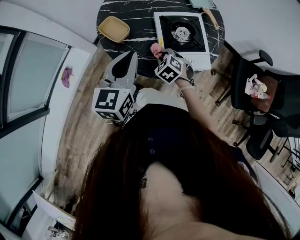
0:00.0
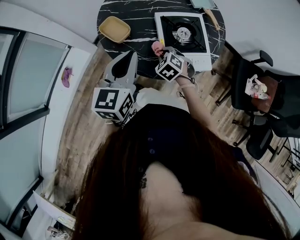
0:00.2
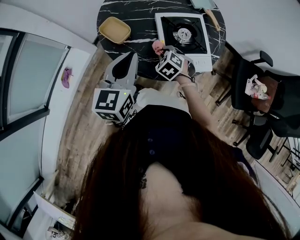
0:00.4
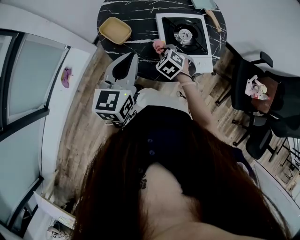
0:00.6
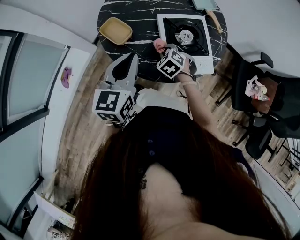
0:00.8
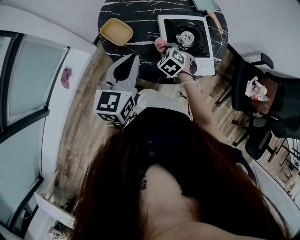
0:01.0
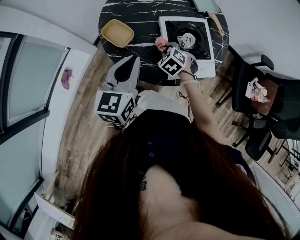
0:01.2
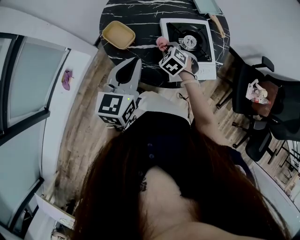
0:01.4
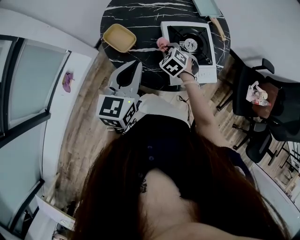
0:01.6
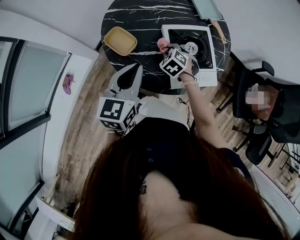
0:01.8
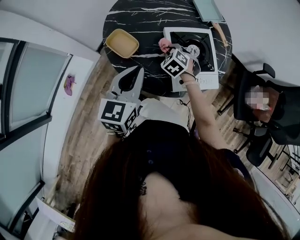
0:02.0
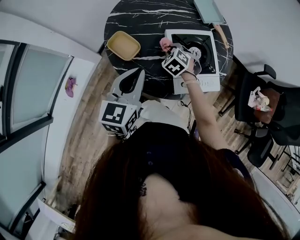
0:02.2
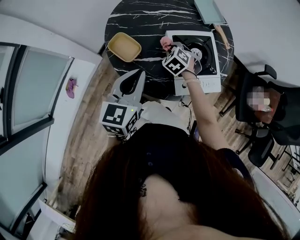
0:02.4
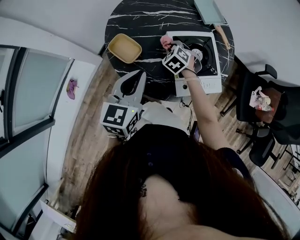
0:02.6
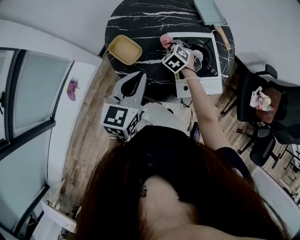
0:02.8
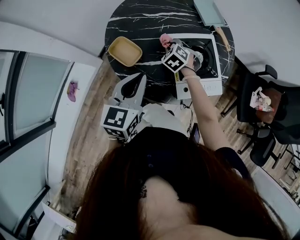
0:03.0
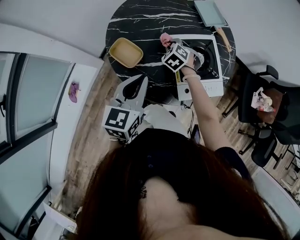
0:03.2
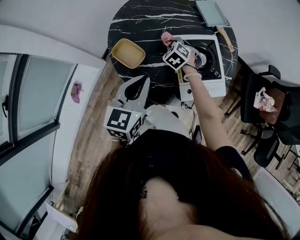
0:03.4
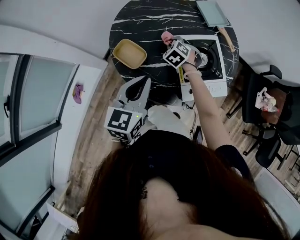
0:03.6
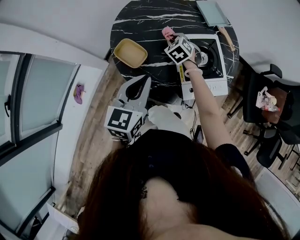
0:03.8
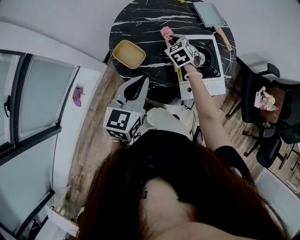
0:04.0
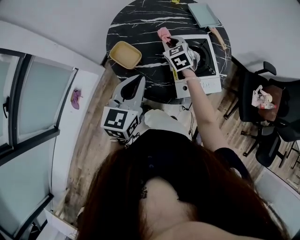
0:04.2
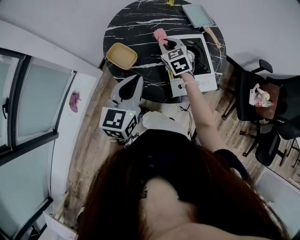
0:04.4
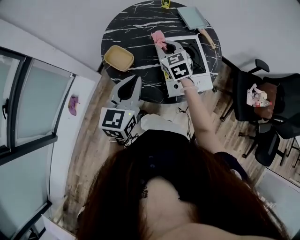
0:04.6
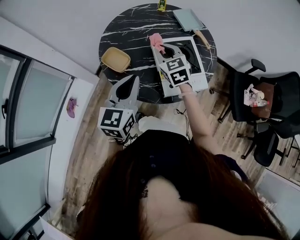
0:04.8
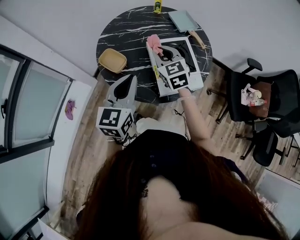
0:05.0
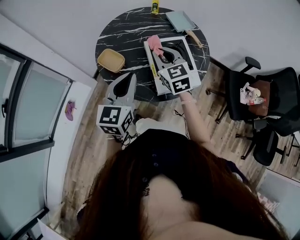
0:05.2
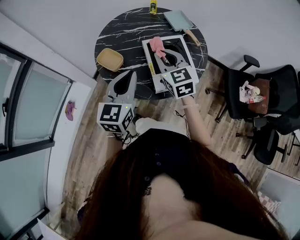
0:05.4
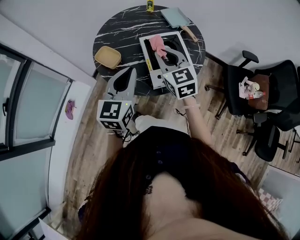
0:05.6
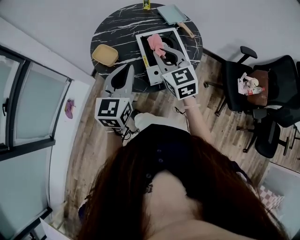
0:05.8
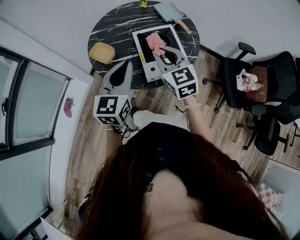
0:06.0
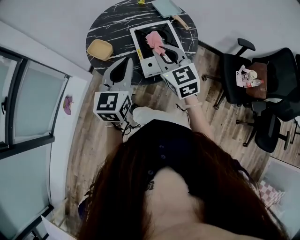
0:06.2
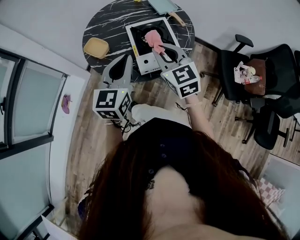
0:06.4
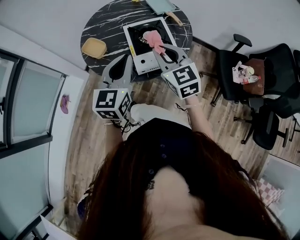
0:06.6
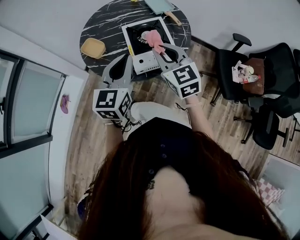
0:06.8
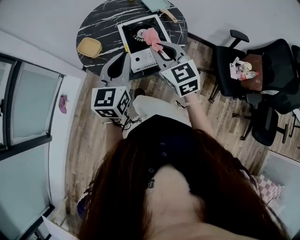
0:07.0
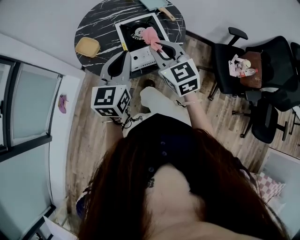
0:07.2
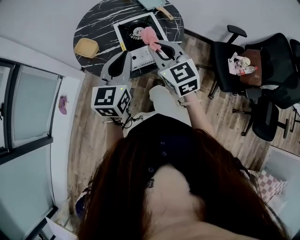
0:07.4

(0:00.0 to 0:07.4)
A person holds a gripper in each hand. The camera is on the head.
0:00.0 - 0:01.4: The right gripper travels forward by some 10 cm.
0:01.4 - 0:03.0: The right gripper shifts approximately 10 cm forward.
0:03.0 - 0:04.4: The right gripper shifts some 10 cm upward, and rotates roughly 30 degrees.
0:04.4 - 0:06.0: The left gripper shifts some 15 cm to the right, backward and upward. The right gripper goes about 30 cm backward, upward and to the right.
0:06.0 - 0:07.4: The right gripper goes approximately 10 cm to the right and backward. Meanwhile the left gripper goes approximately 10 cm to the right.

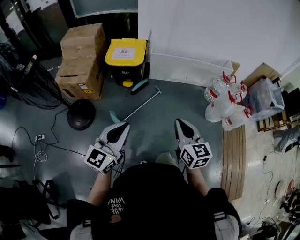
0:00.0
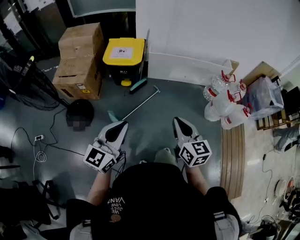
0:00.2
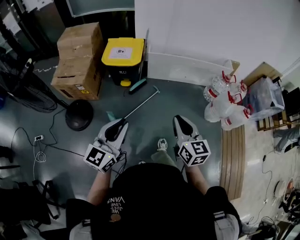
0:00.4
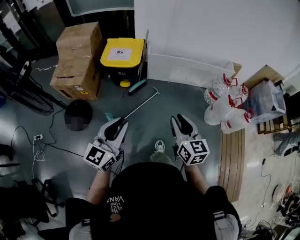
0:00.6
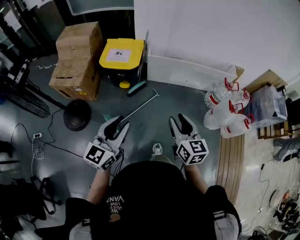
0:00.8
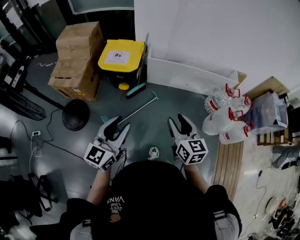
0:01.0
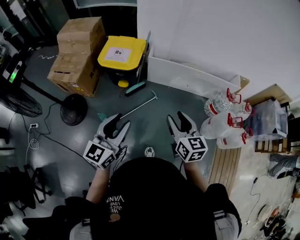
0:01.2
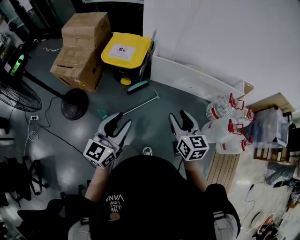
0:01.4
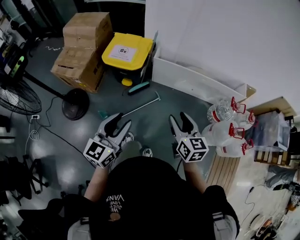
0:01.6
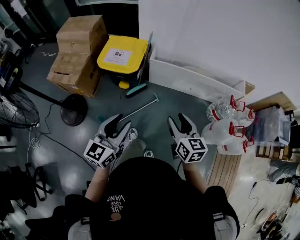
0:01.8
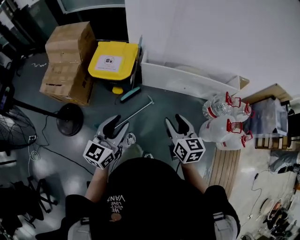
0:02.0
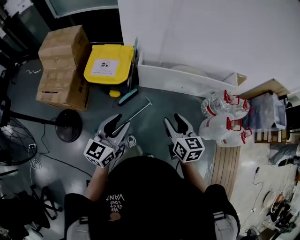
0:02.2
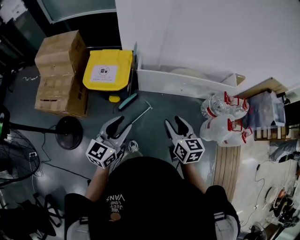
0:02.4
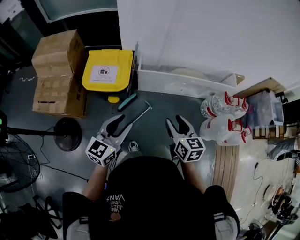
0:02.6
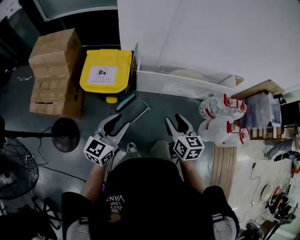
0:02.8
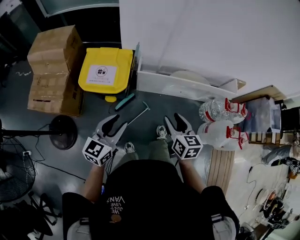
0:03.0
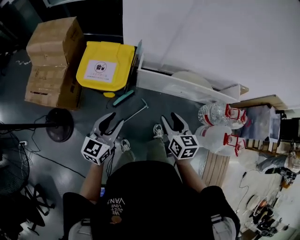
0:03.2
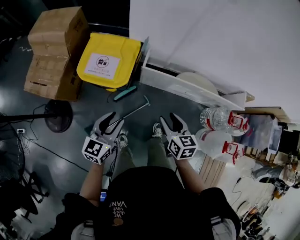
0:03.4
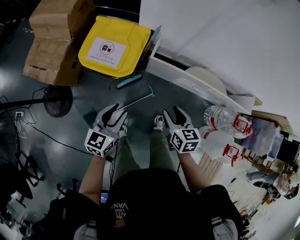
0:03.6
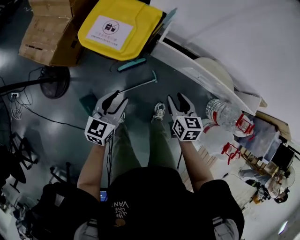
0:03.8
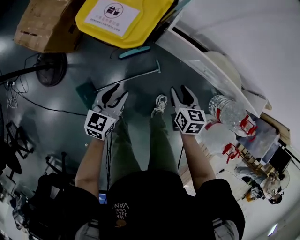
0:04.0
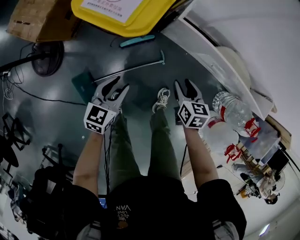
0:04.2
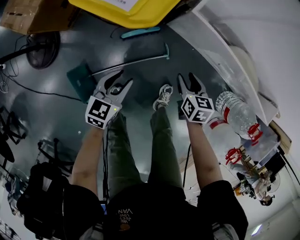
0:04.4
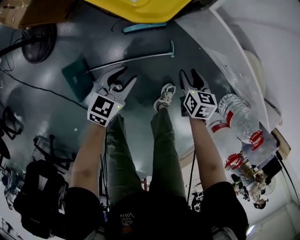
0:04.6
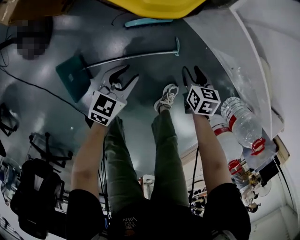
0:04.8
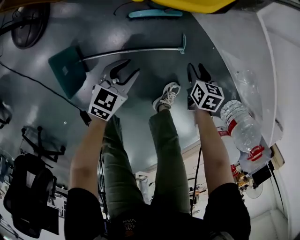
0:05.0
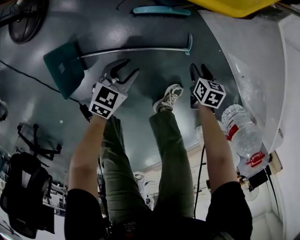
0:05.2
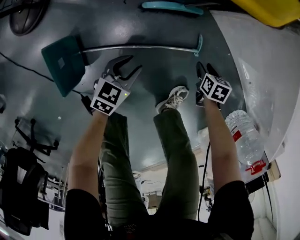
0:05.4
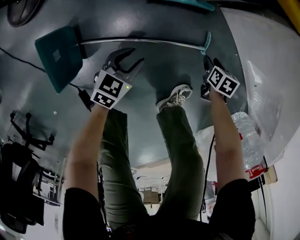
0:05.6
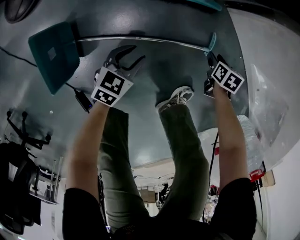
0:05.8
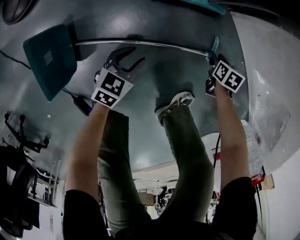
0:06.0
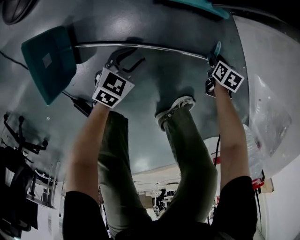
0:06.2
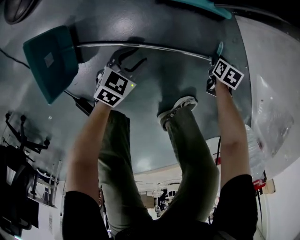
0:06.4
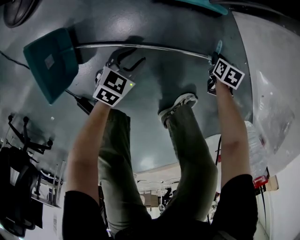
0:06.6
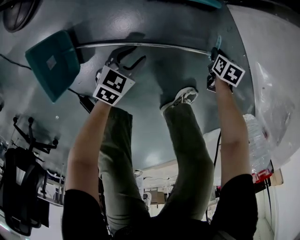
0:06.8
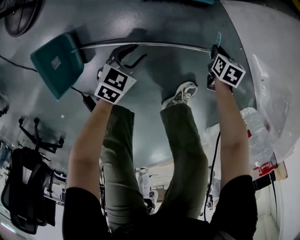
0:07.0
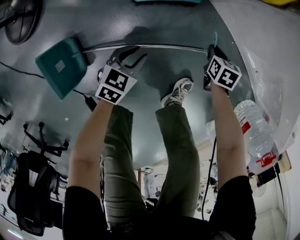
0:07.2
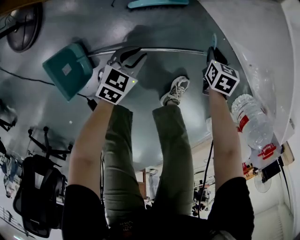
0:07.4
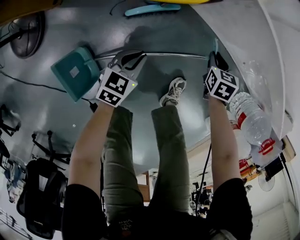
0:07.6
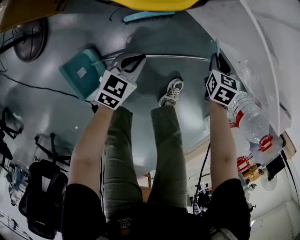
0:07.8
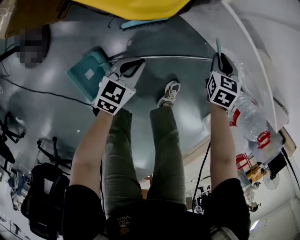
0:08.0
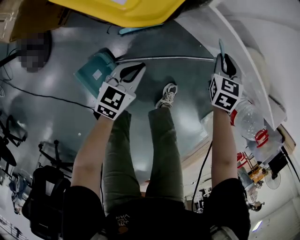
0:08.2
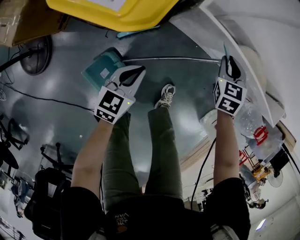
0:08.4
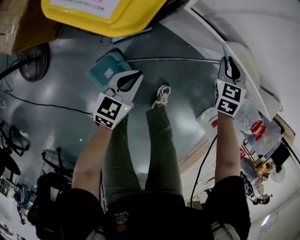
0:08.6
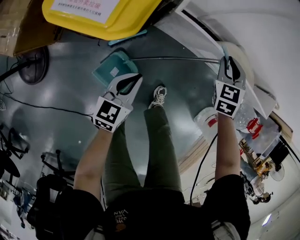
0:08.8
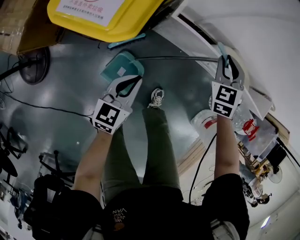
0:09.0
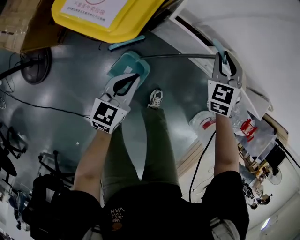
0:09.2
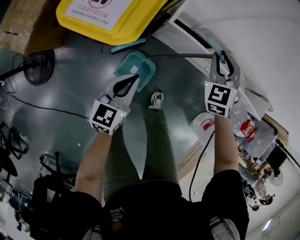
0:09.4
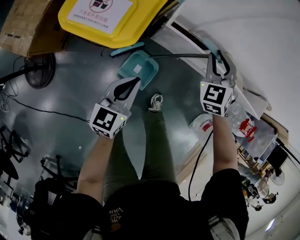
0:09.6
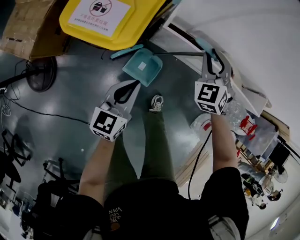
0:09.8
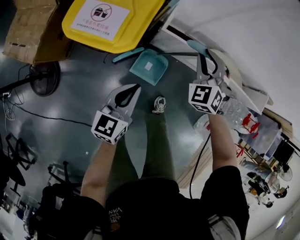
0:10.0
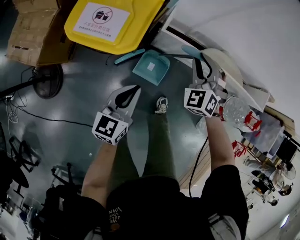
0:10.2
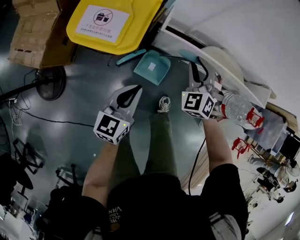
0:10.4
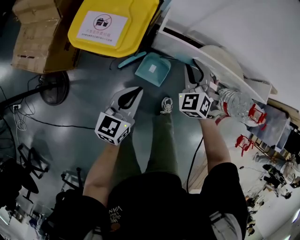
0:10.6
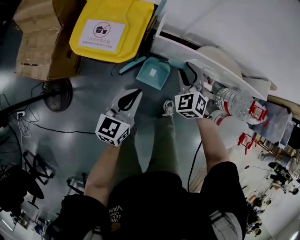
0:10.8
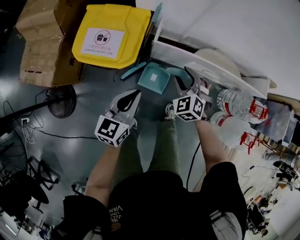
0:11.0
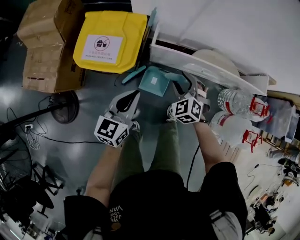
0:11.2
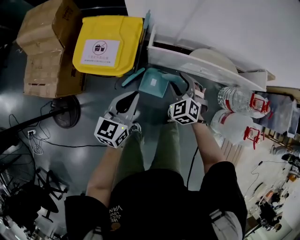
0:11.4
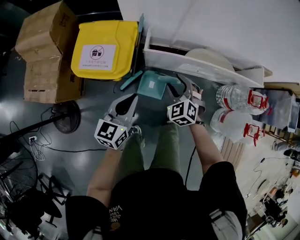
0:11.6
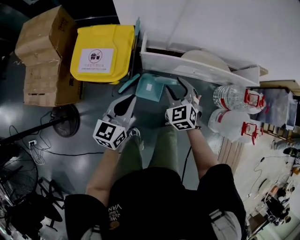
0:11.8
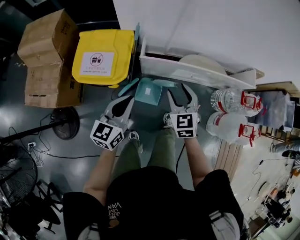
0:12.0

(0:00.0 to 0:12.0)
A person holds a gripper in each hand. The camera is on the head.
0:00.0 - 0:01.6: The right gripper moves forward, about 30 cm, and opens, while the left gripper heads forward and to the right, covering roughly 25 cm, and opens its fingers.
0:01.6 - 0:03.0: The two grippers go about 20 cm forward.
0:03.0 - 0:04.4: The grippers both shift downward by roughly 40 cm. The right gripper rotates some 30 degrees; the left gripper changes its angle by roughly 30 degrees.
0:04.4 - 0:06.0: Both grippers move downward, about 40 cm. The right gripper rotates roughly 20 degrees.
0:06.0 - 0:07.6: Both grippers move upward, roughly 20 cm. The left gripper closes. Meanwhile the right gripper closes.
0:07.6 - 0:09.0: Both grippers travel together upward, roughly 30 cm. The right gripper swivels some 40 degrees.
0:09.0 - 0:10.4: The right gripper is displaced backward, to the left and upward by approximately 15 cm. Meanwhile the left gripper is displaced upward by about 15 cm.
0:10.4 - 0:12.0: The right gripper is displaced upward and backward by some 15 cm, rotates roughly 40 degrees, and opens, while the left gripper is displaced upward by about 15 cm.

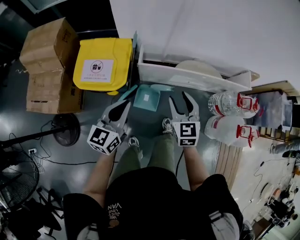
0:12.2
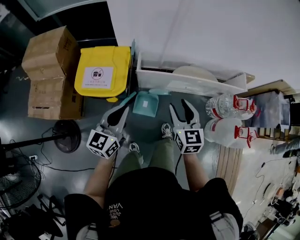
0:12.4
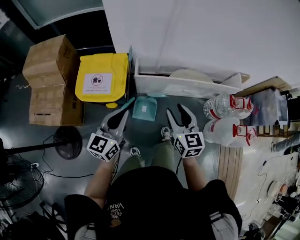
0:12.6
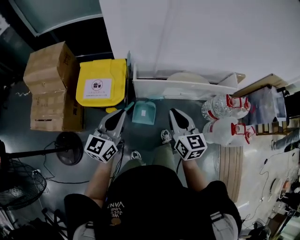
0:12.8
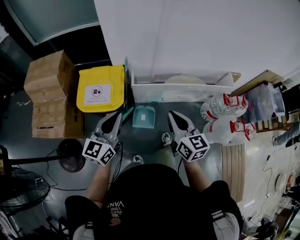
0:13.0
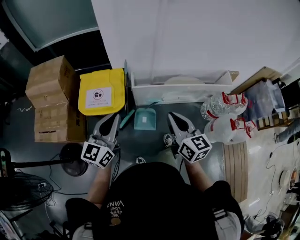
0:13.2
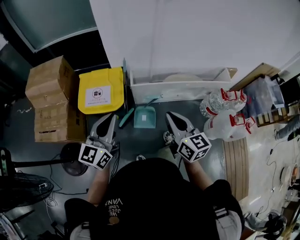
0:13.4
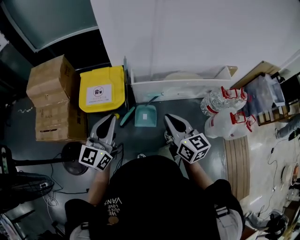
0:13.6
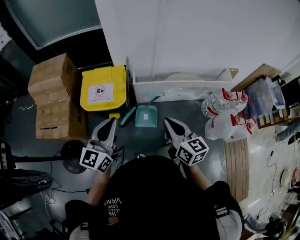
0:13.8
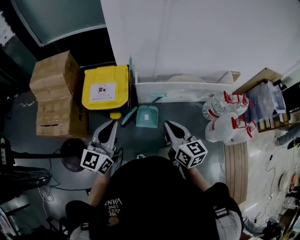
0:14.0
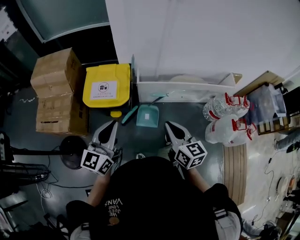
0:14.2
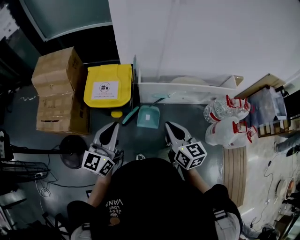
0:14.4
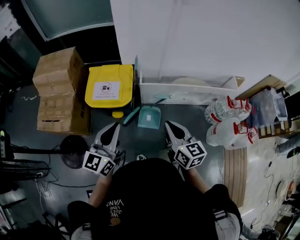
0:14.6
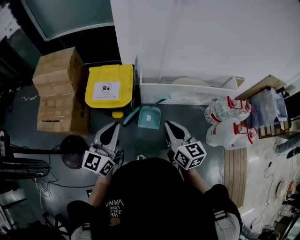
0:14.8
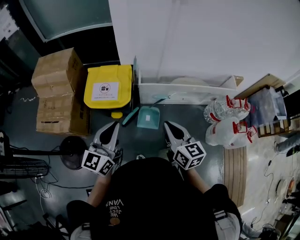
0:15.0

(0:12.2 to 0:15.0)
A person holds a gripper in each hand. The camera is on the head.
0:12.2 - 0:13.6: The left gripper heads upward and backward, covering approximately 20 cm, while the right gripper is displaced backward and upward by roughly 20 cm, changes its angle by approximately 30 degrees, and closes its fingers.
0:13.6 - 0:15.0: The grippers move only a little.

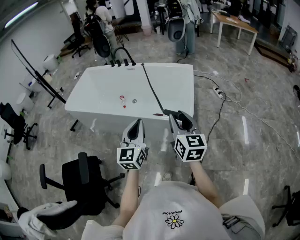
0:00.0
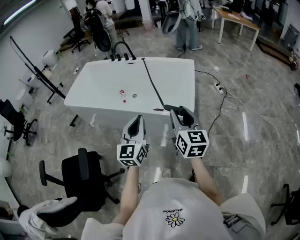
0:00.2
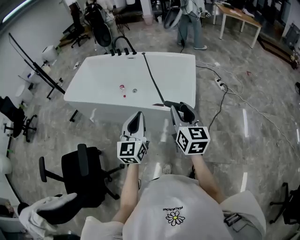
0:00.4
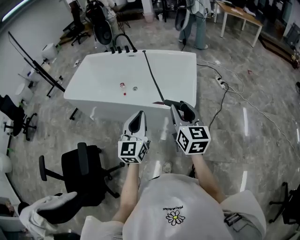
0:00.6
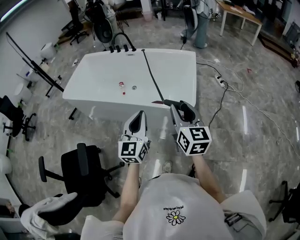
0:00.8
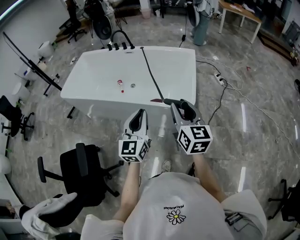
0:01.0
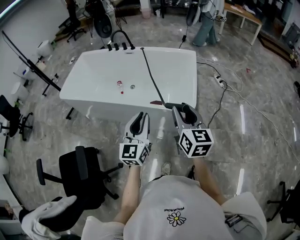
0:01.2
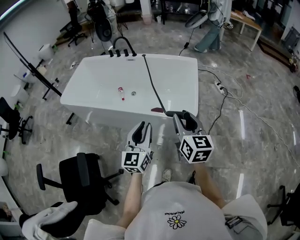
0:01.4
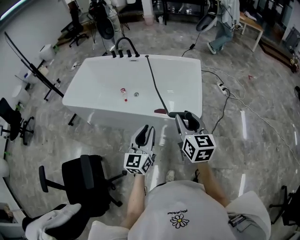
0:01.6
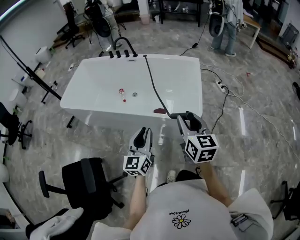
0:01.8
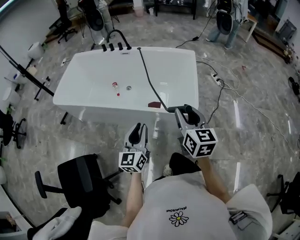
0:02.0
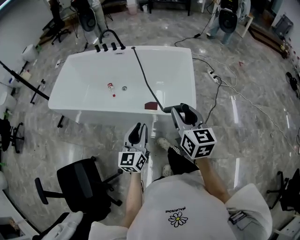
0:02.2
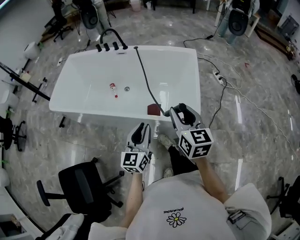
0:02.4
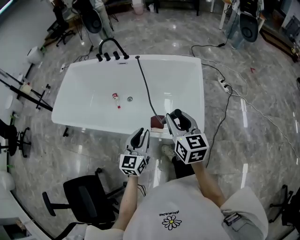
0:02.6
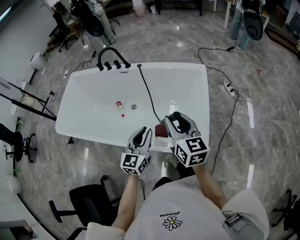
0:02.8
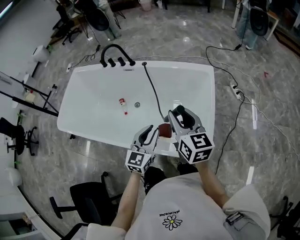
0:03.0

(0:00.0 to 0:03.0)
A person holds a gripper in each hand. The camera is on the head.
0:00.0 - 0:01.6: The right gripper travels forward by about 5 cm. Meanwhile the left gripper travels downward by some 5 cm.
0:01.6 - 0:03.0: The grippers both shift forward by approximately 35 cm.
